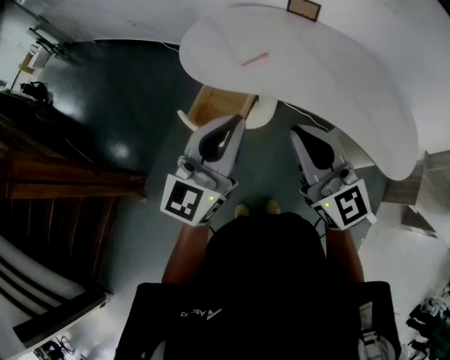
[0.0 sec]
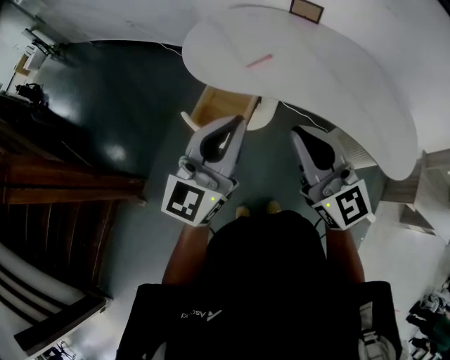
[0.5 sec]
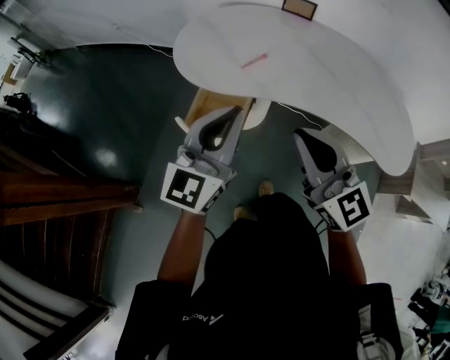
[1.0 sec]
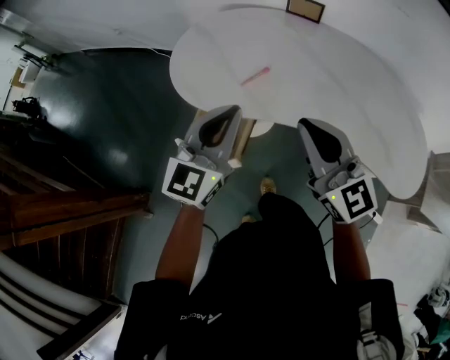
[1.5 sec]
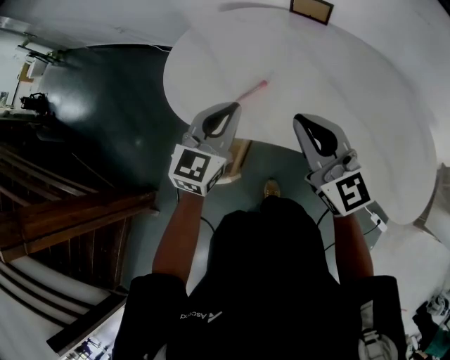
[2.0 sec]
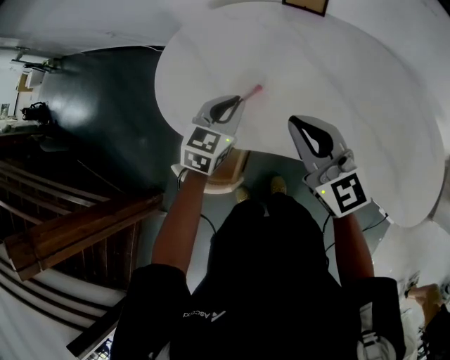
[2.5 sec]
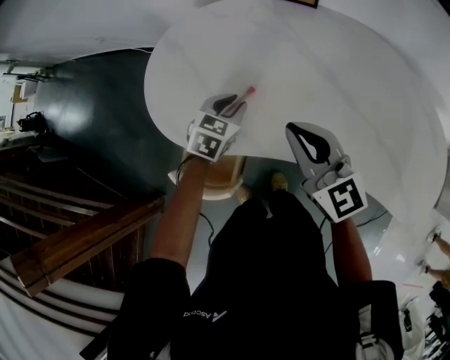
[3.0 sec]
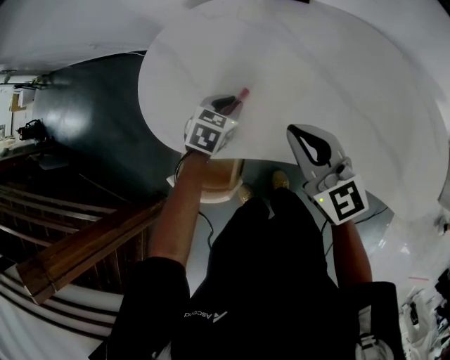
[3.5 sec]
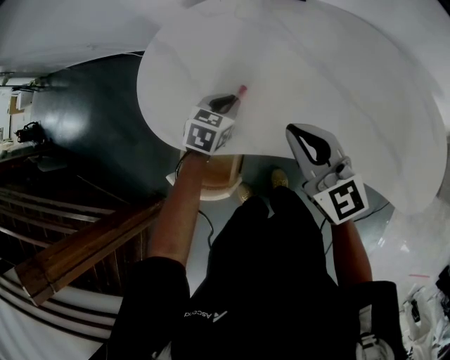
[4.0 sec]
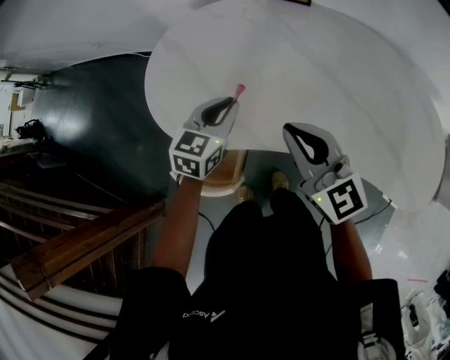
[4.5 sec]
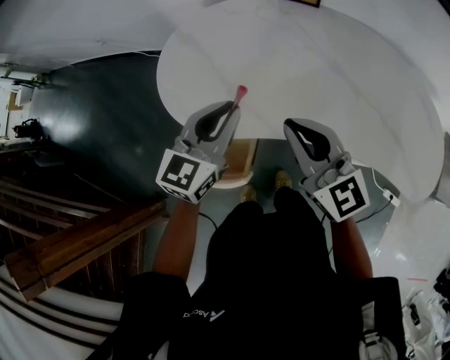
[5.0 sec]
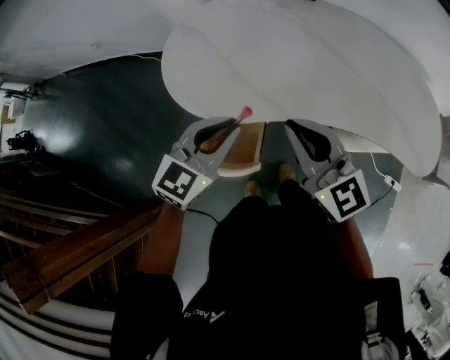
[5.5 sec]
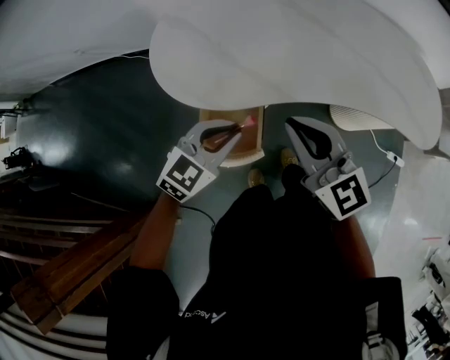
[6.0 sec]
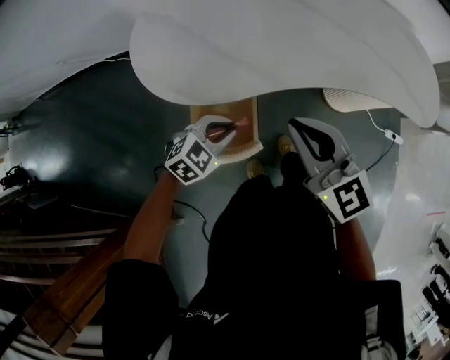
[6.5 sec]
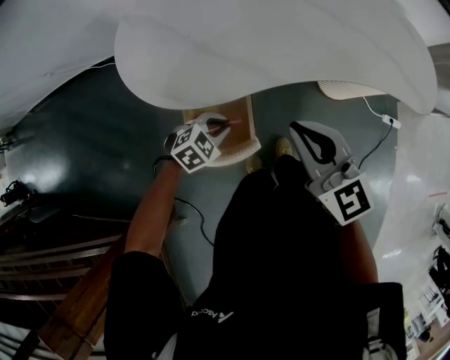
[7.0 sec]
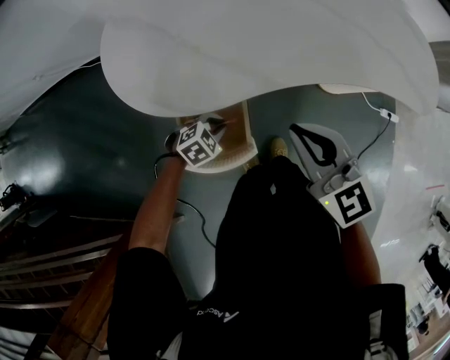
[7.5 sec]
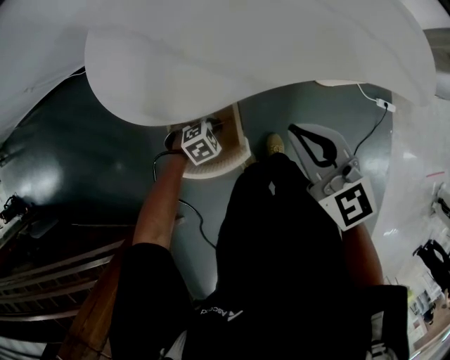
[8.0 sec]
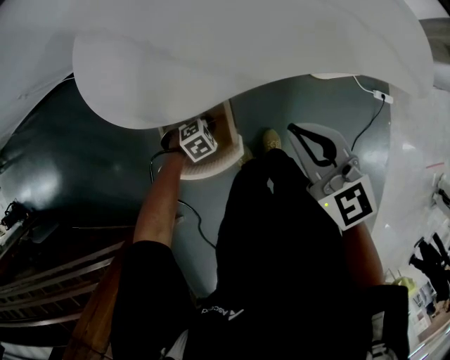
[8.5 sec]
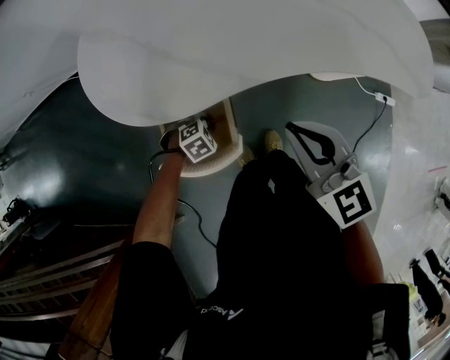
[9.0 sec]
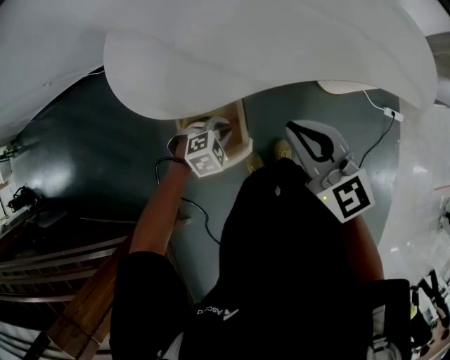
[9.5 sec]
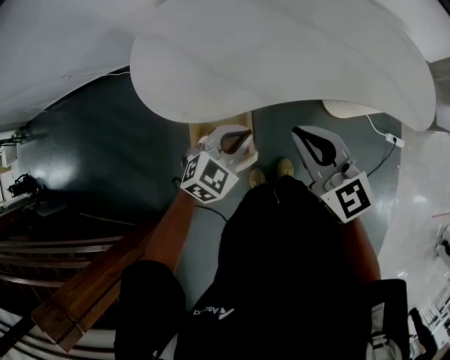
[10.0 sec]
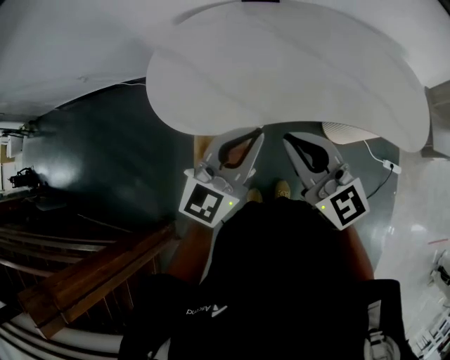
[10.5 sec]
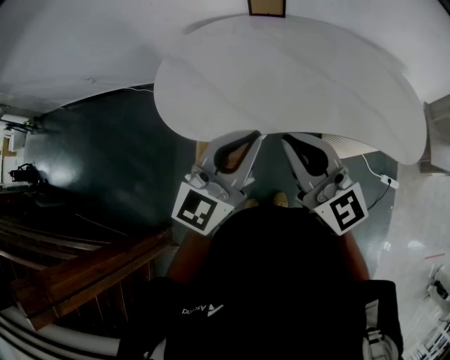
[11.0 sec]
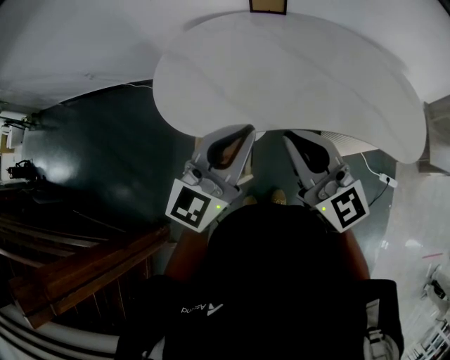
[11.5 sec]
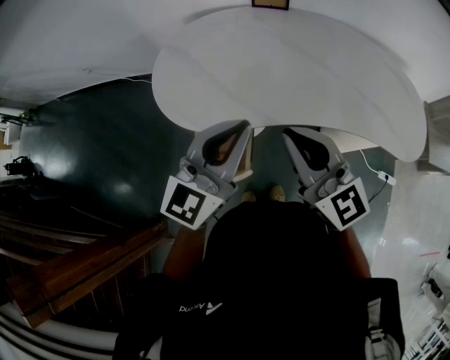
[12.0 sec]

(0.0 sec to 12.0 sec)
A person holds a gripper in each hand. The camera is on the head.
0.0 sec - 2.0 sec: The right gripper shifts roughly 25 cm forward. Meanwhile the left gripper moves forward and downward, approximately 30 cm, and swivels some 20 degrees.
2.0 sec - 4.0 sec: The right gripper moves downward, some 5 cm; the left gripper goes some 20 cm downward and forward, and tilts its fingers approximately 40 degrees downward.
4.0 sec - 6.0 sec: Both grippers travel together backward and to the left, approximately 25 cm. The left gripper rotates some 40 degrees.
6.0 sec - 8.0 sec: The right gripper heads downward, covering about 10 cm. The left gripper goes some 30 cm downward, and tips its fingers downward by roughly 40 degrees.
8.0 sec - 10.0 sec: The left gripper is displaced upward by about 25 cm, and angles its fingers upward, by about 30 degrees. The right gripper moves upward, about 5 cm.
10.0 sec - 12.0 sec: The left gripper goes about 25 cm upward, and tilts its fingers about 40 degrees upward; the right gripper heads upward, covering roughly 10 cm.

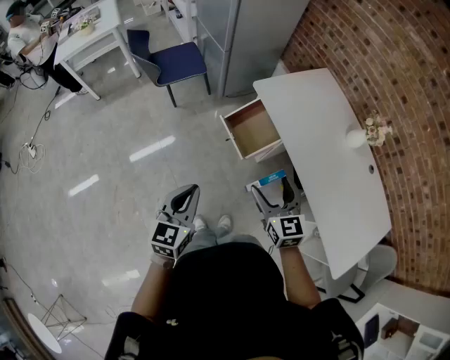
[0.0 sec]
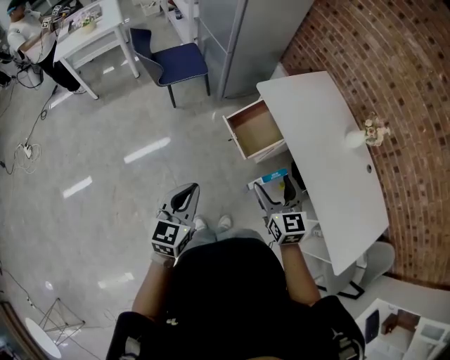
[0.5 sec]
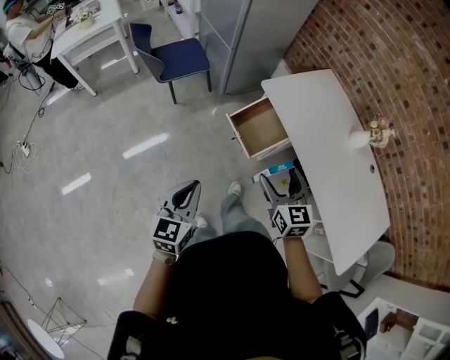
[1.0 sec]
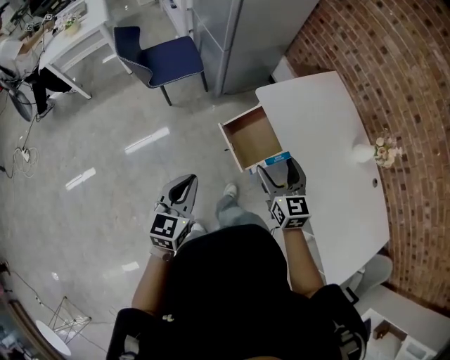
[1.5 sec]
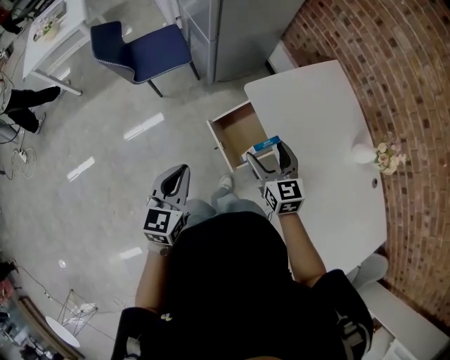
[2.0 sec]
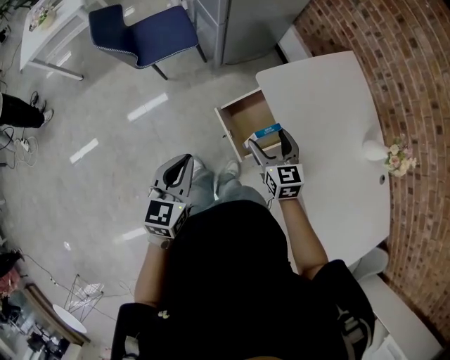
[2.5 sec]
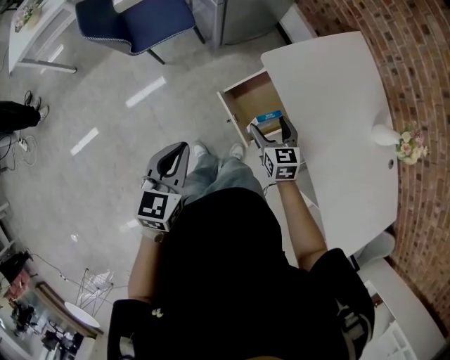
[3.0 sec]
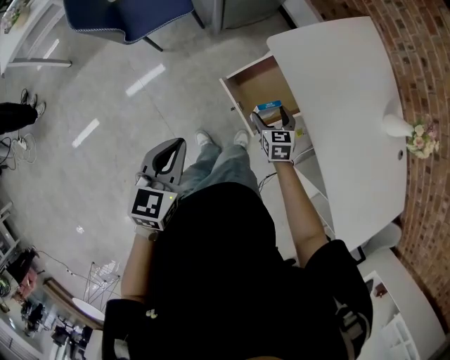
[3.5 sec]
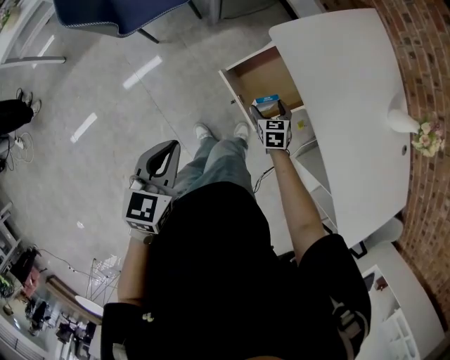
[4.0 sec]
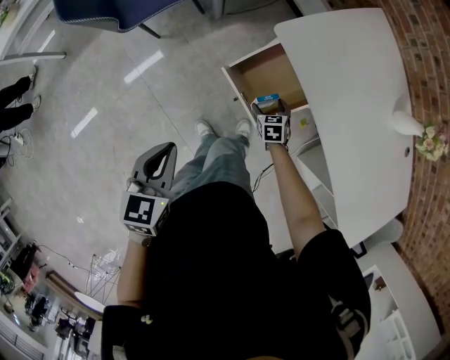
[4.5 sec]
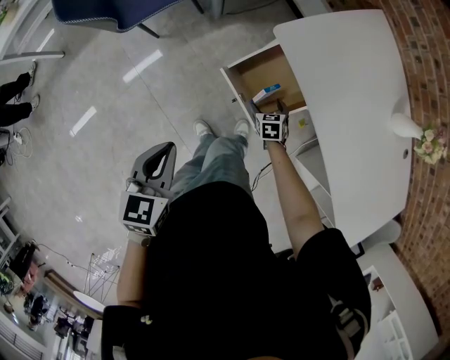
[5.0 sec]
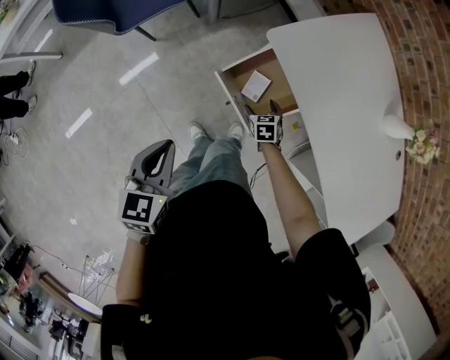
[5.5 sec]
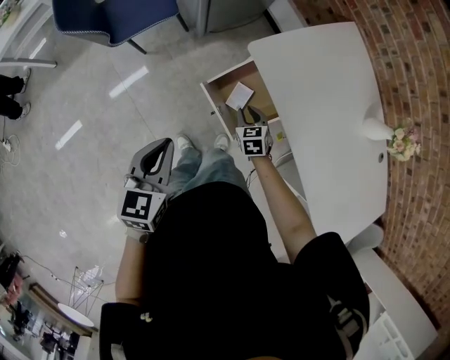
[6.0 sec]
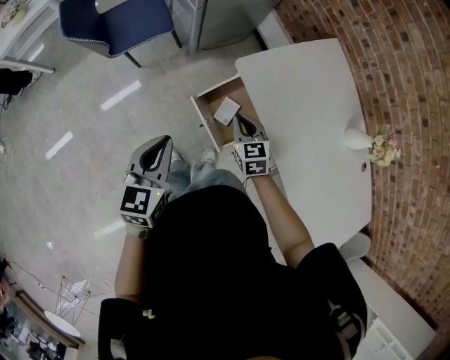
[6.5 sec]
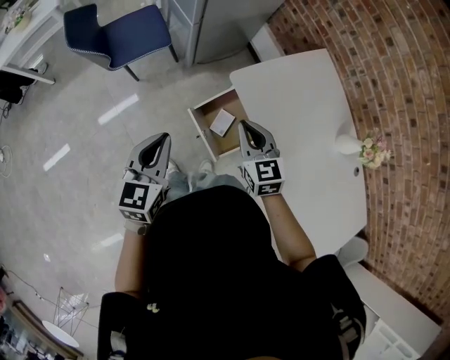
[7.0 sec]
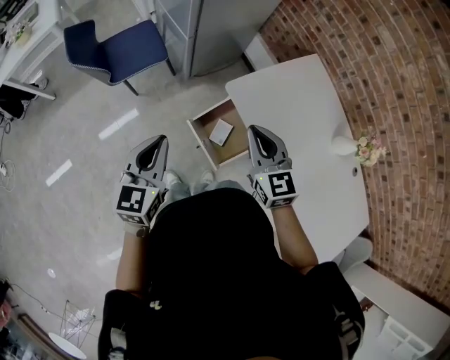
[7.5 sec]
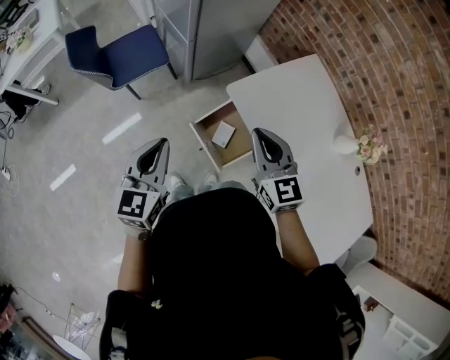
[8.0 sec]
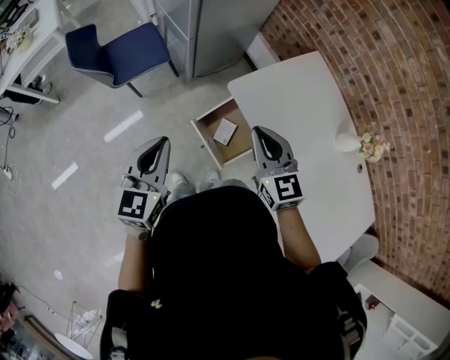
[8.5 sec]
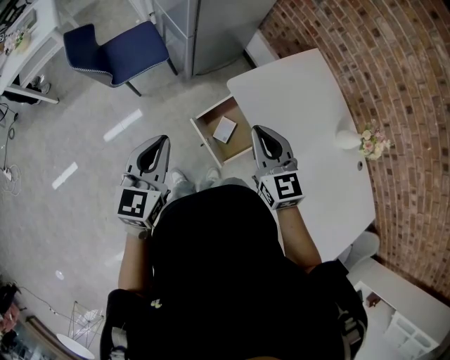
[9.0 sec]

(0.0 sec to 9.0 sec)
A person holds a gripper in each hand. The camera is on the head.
0.0 sec - 2.0 sec: The two grippers go about 25 cm forward.
2.0 sec - 4.5 sec: The left gripper shifts roughly 15 cm downward and to the left. Meanwhile the right gripper heads downward, covering some 35 cm, and tilts its fingers roughly 30 degrees downward.
4.5 sec - 7.0 sec: The right gripper is displaced upward by some 35 cm, tilts its fingers approximately 30 degrees upward, and closes up, while the left gripper travels upward, forward and to the right by some 15 cm.
7.0 sec - 9.0 sec: The left gripper shifts about 5 cm upward. The right gripper shifts about 10 cm upward.

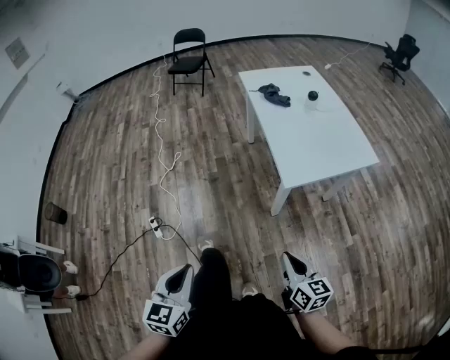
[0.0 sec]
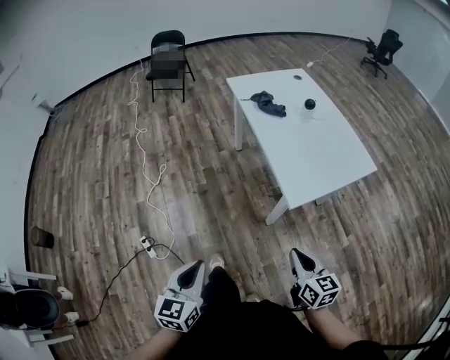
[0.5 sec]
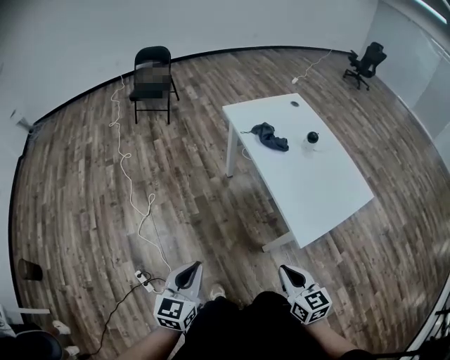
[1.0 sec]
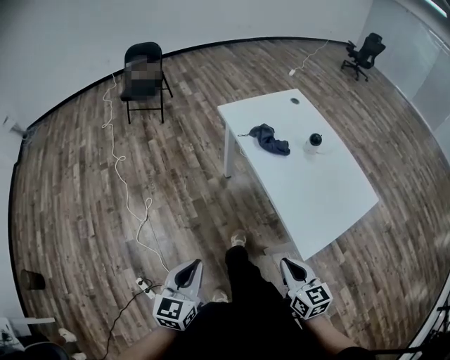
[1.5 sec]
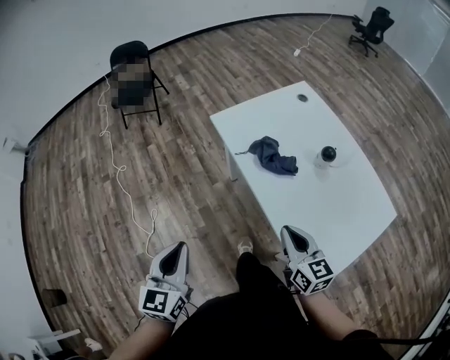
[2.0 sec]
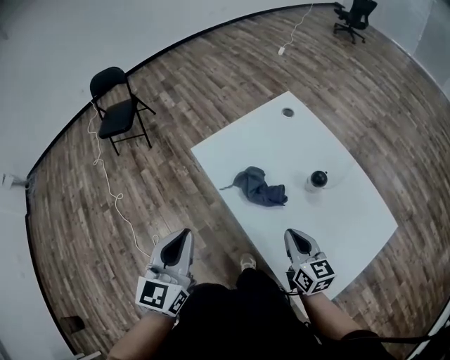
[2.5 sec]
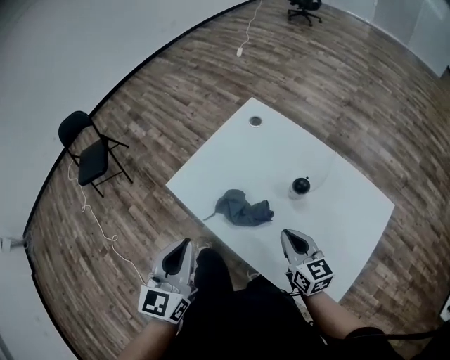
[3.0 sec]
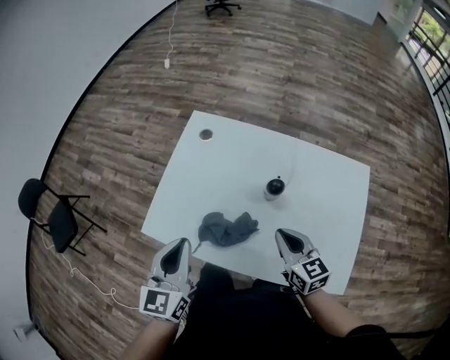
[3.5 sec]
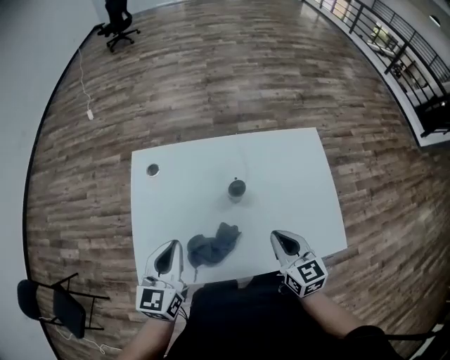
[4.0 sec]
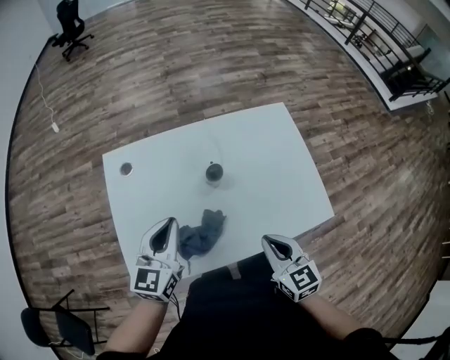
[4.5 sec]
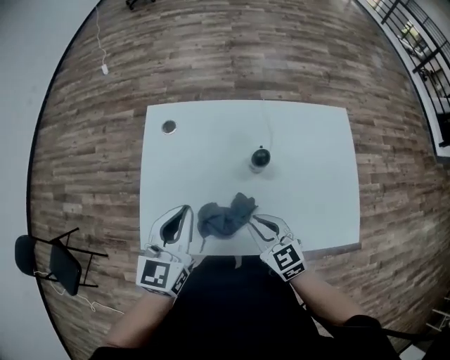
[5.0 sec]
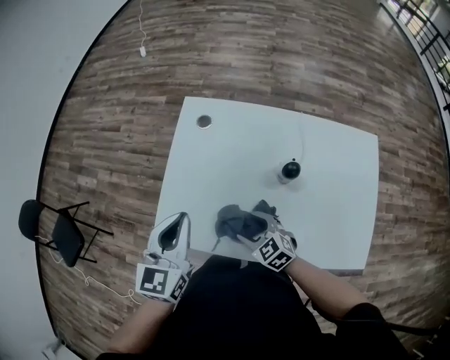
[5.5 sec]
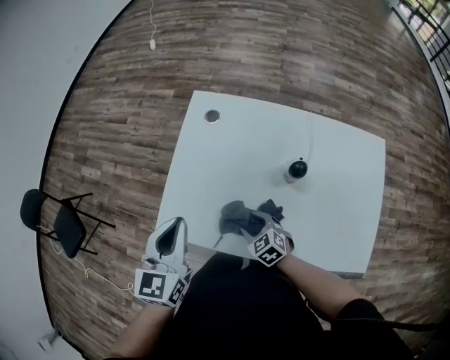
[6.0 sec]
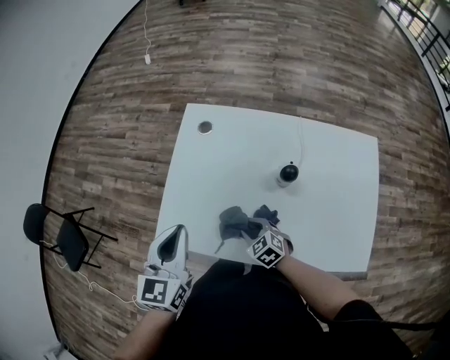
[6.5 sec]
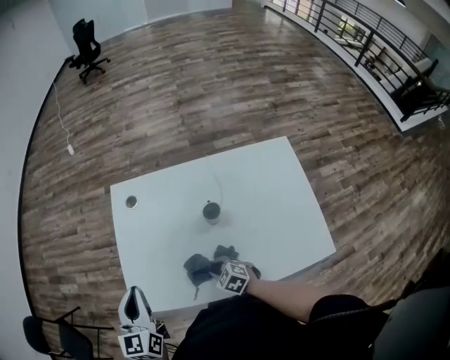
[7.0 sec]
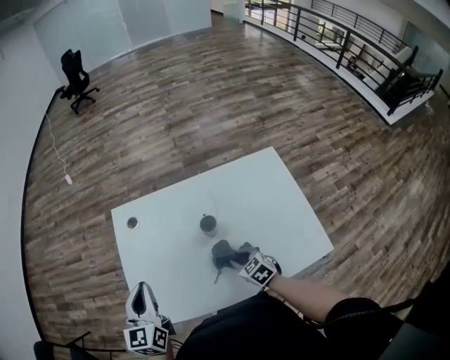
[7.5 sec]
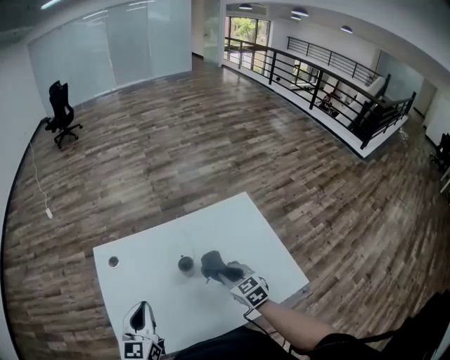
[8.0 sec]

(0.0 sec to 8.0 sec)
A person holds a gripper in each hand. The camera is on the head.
0.0 sec - 2.0 sec: The two grippers travel together, forward, some 50 cm.
2.0 sec - 4.0 sec: The right gripper shifts by some 10 cm, and turns by some 60 degrees; the left gripper changes place by some 40 cm, and rotates about 70 degrees.
4.0 sec - 6.0 sec: The right gripper heads downward, covering some 20 cm, swivels some 50 degrees, and opens. The left gripper moves roughly 10 cm.
6.0 sec - 8.0 sec: The left gripper shifts by approximately 15 cm, and rotates approximately 20 degrees. Meanwhile the right gripper moves about 25 cm, turns by some 50 degrees, and closes up.
